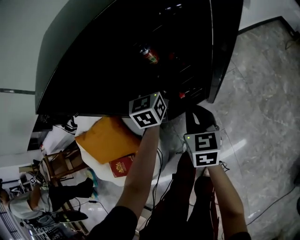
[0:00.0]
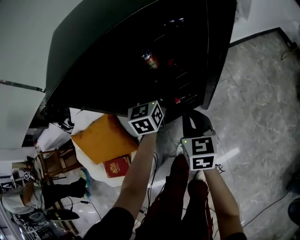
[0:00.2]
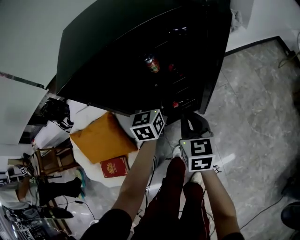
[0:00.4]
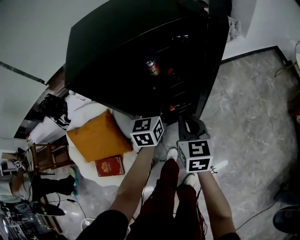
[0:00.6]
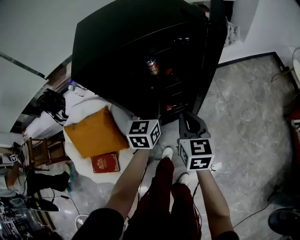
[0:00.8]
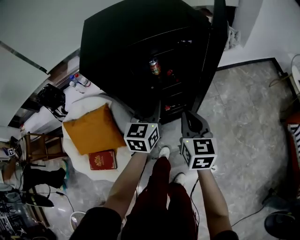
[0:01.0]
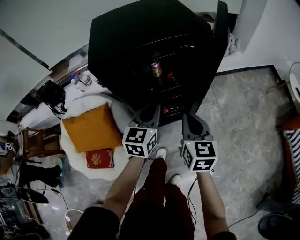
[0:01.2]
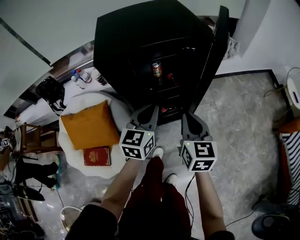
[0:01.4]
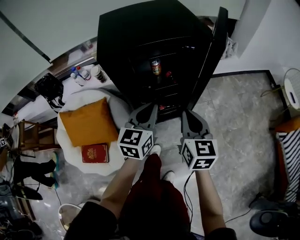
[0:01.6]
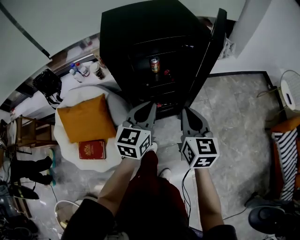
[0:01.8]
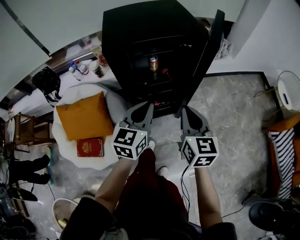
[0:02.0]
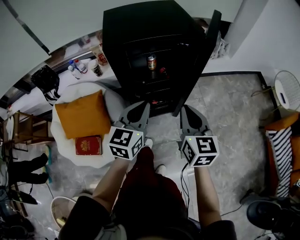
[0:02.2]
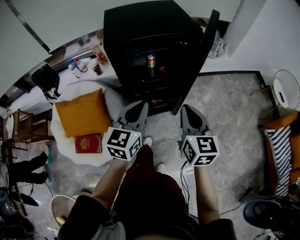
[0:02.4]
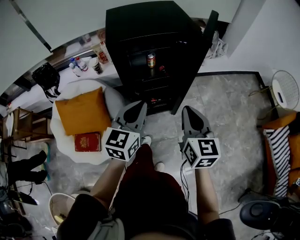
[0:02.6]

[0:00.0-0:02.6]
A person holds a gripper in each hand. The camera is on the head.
0.0 to 1.2 s: The right gripper is displaced upward and backward by roughly 15 cm, while the left gripper is displaced backward and upward by about 20 cm, and closes.
1.2 to 2.6 s: Both grippers travel together backward and upward, about 15 cm.

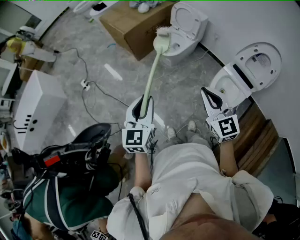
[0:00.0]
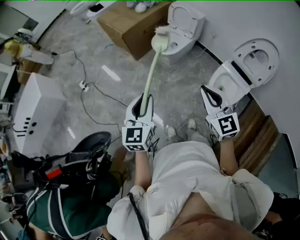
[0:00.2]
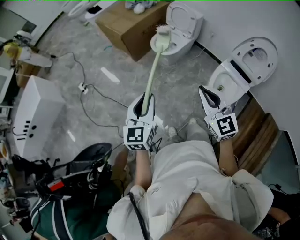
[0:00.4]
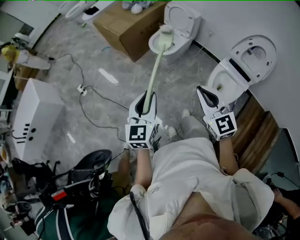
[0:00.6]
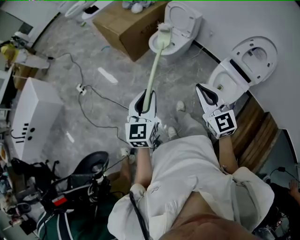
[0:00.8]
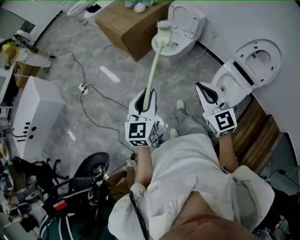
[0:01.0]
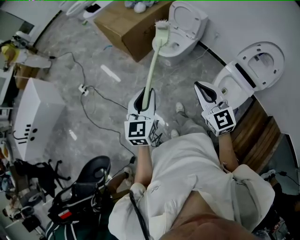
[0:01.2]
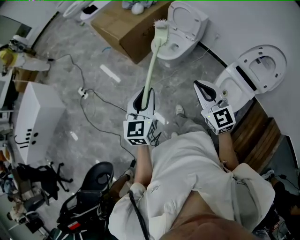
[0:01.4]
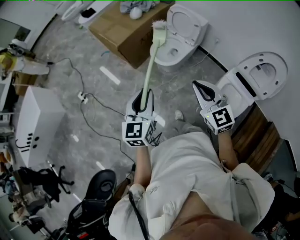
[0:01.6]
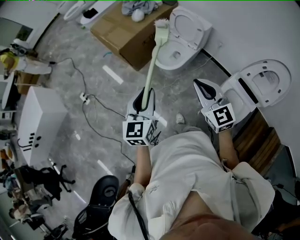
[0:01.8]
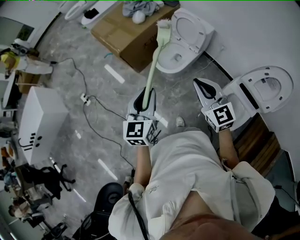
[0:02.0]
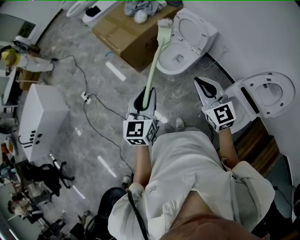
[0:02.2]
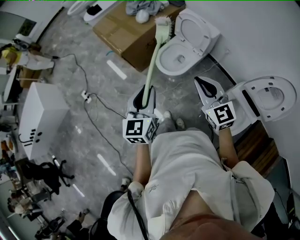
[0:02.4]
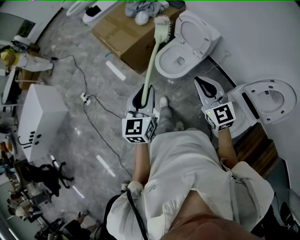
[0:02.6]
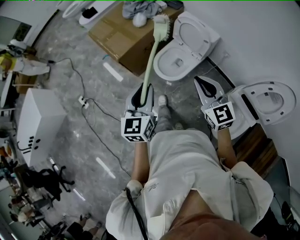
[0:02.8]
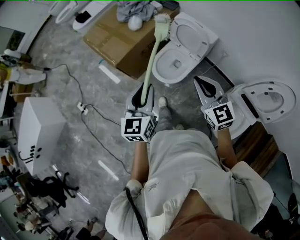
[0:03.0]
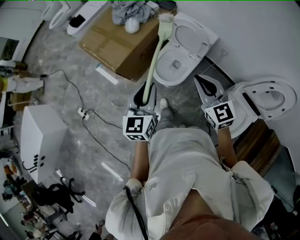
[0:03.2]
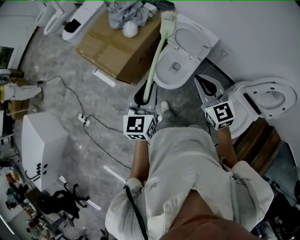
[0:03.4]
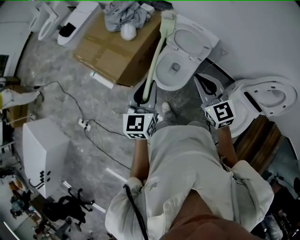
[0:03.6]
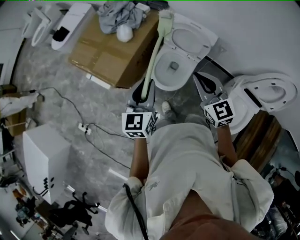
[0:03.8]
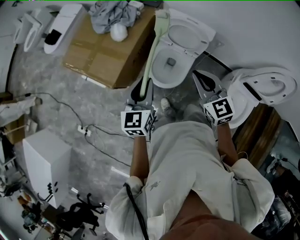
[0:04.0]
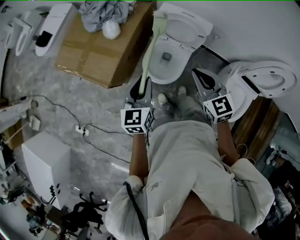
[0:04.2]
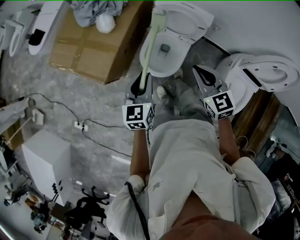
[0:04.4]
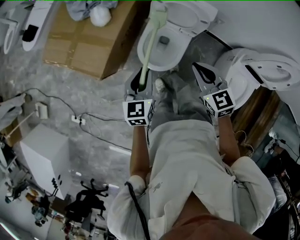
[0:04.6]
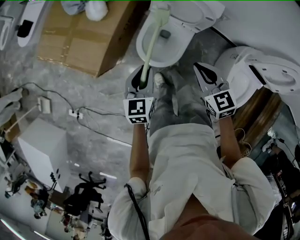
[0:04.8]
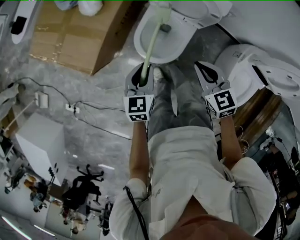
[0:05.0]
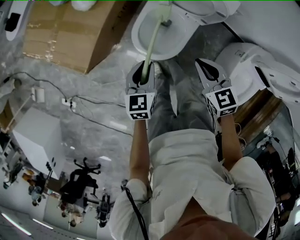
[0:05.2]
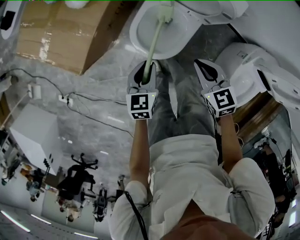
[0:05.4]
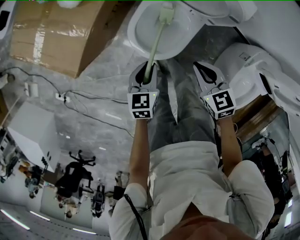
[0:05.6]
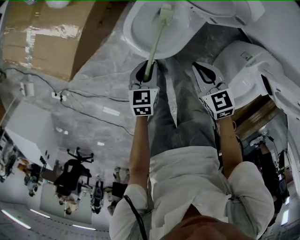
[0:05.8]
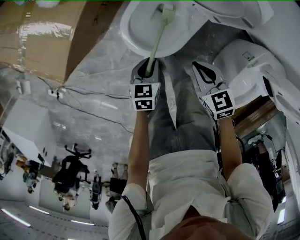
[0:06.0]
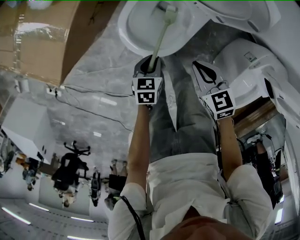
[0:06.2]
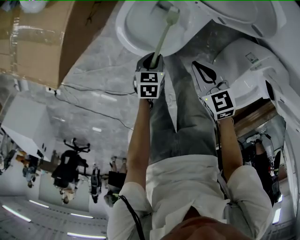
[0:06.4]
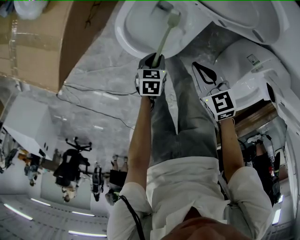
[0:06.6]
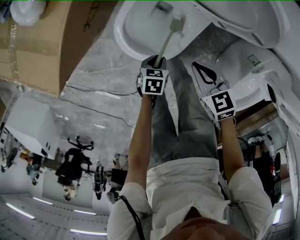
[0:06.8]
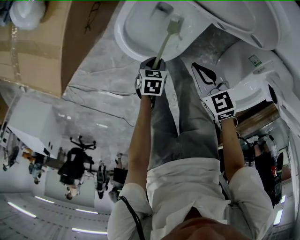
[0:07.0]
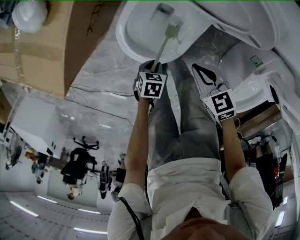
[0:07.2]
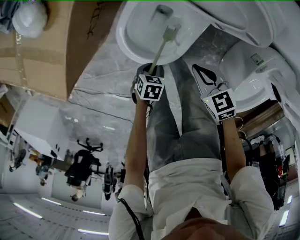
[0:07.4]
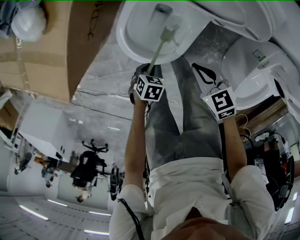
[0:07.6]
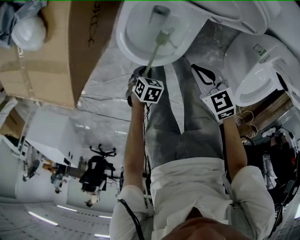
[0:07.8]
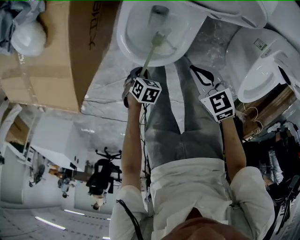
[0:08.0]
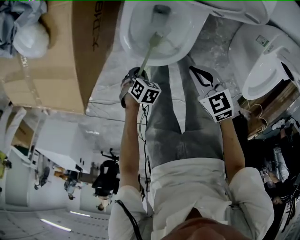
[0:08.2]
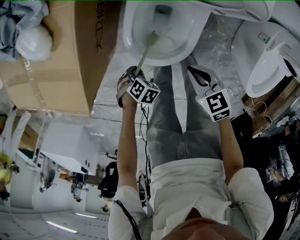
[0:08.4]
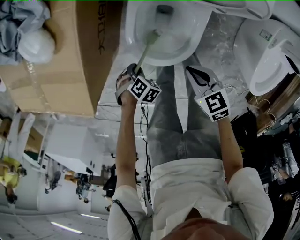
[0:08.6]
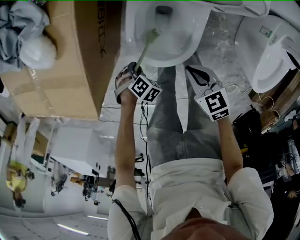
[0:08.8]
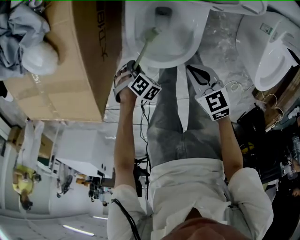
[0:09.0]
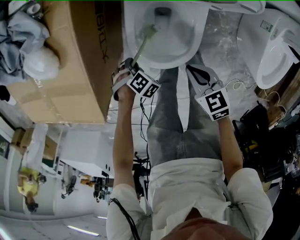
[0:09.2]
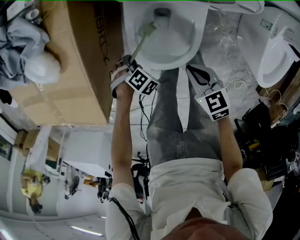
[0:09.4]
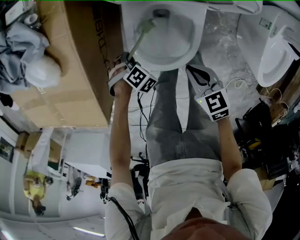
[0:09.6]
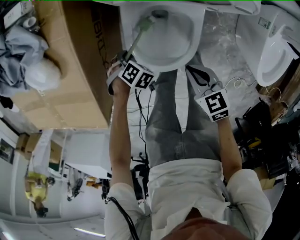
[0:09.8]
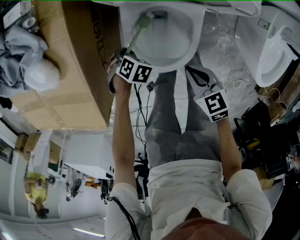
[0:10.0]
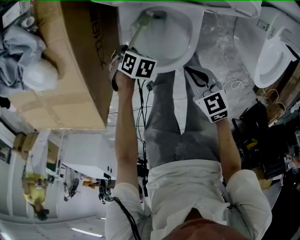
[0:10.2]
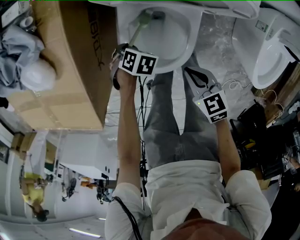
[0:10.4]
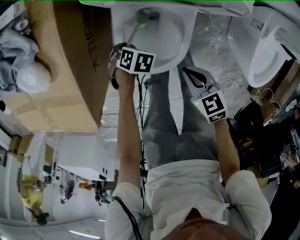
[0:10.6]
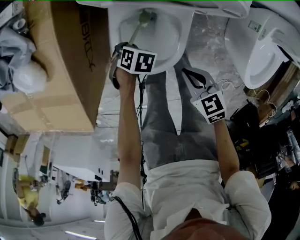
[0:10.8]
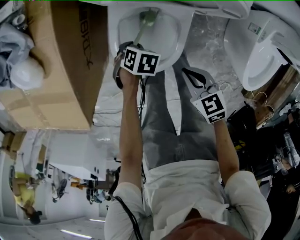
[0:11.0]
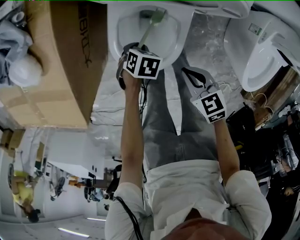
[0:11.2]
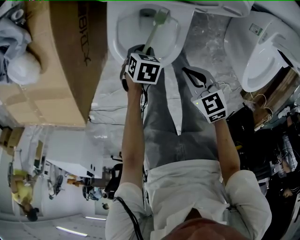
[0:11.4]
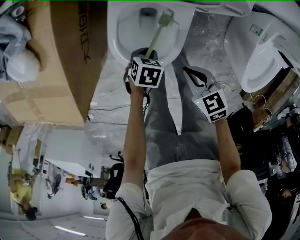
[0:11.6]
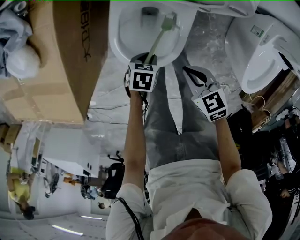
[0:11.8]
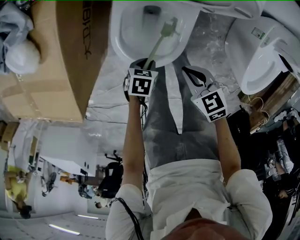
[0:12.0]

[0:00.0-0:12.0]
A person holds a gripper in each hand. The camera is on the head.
0.0 to 1.6 s: Both grippers move forward, roughly 20 cm.
1.6 to 3.0 s: Both grippers travel together forward, about 25 cm.
3.0 to 4.4 s: Both grippers travel together forward and downward, approximately 20 cm. The right gripper swivels approximately 20 degrees; the left gripper rotates about 20 degrees.
4.4 to 6.0 s: Both grippers move downward, some 35 cm. The right gripper swivels about 30 degrees, while the left gripper tilts its fingers some 30 degrees downward.
6.0 to 7.6 s: The right gripper travels downward by approximately 5 cm. The left gripper heads downward, covering some 10 cm, and swivels some 40 degrees.
7.6 to 9.0 s: The right gripper shifts by roughly 10 cm, and turns by roughly 20 degrees, while the left gripper changes place by about 15 cm, and rolls clockwise, seen from behind, by roughly 50 degrees.
9.0 to 10.4 s: The left gripper changes place by approximately 15 cm, and changes its angle by roughly 20 degrees.
10.4 to 12.0 s: The left gripper ends up roughly 15 cm from where it was, and changes its angle by approximately 40 degrees.

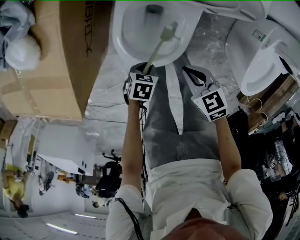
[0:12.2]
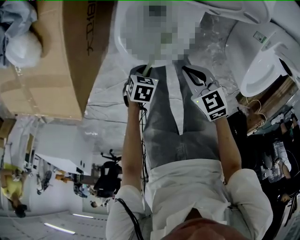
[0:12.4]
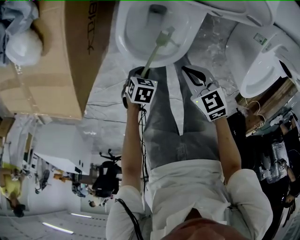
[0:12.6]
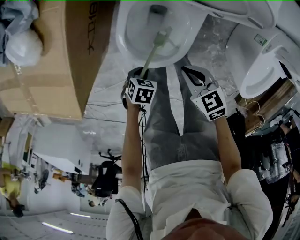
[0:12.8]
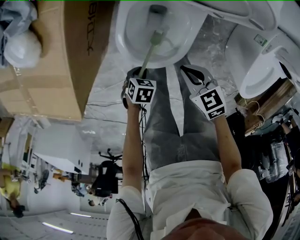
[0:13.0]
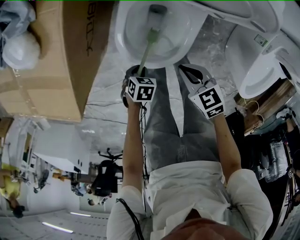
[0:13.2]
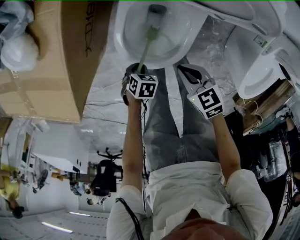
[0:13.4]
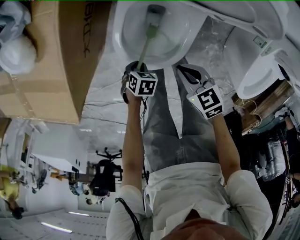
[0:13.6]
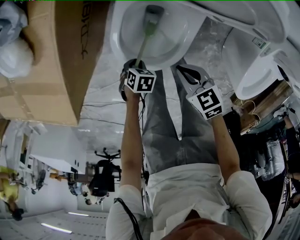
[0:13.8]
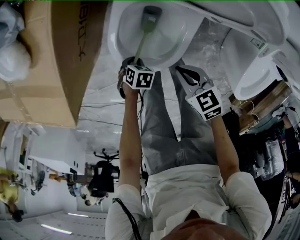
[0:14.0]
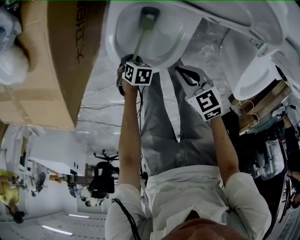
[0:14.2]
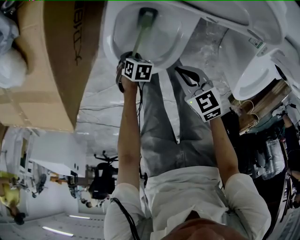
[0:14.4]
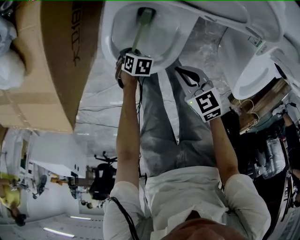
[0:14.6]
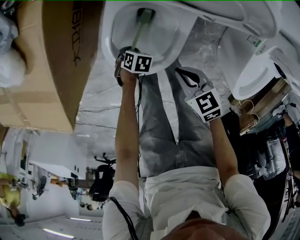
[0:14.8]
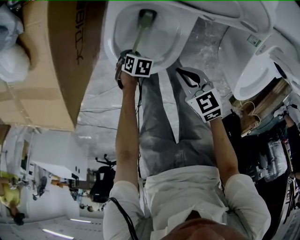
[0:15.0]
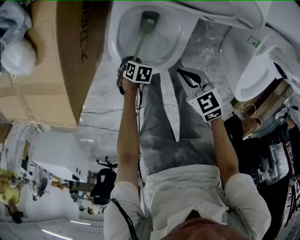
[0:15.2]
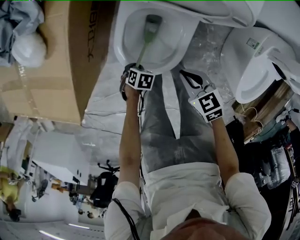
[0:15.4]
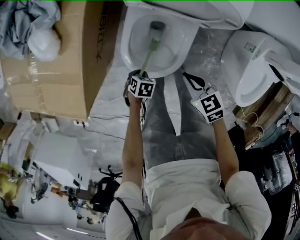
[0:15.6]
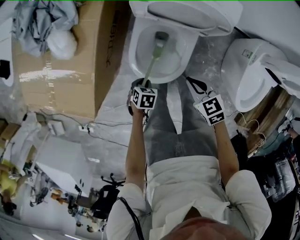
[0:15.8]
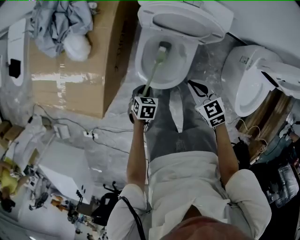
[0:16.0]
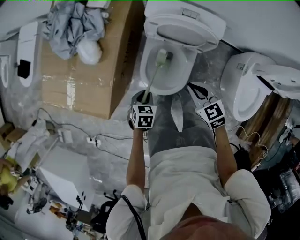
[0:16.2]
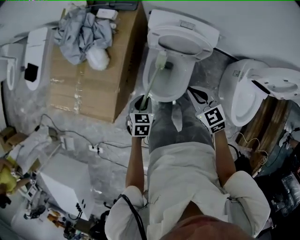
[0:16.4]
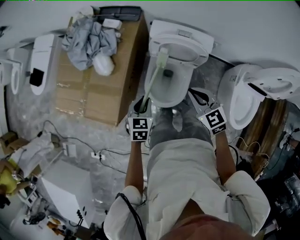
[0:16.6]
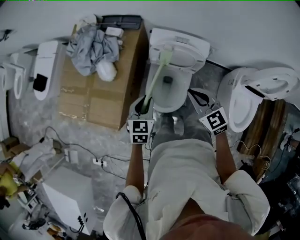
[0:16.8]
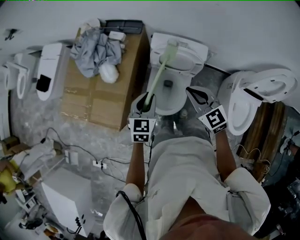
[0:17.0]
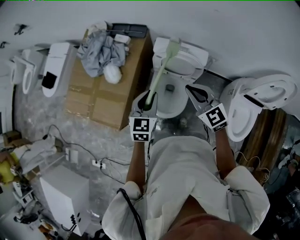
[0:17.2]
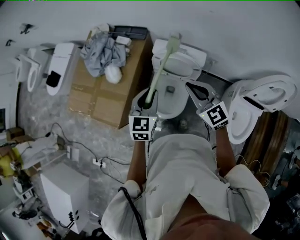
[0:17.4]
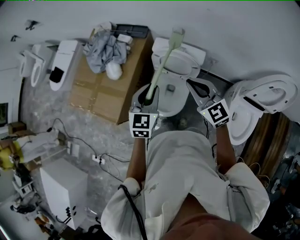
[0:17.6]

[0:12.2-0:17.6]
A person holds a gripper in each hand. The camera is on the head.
12.2 to 13.6 s: The left gripper moves downward, roughly 5 cm.
13.6 to 15.0 s: The left gripper ends up about 10 cm from where it was.
15.0 to 16.2 s: Both grippers travel together upward, approximately 25 cm. The left gripper rotates roughly 30 degrees.
16.2 to 17.6 s: Both grippers move upward, roughly 30 cm. The left gripper angles its fingers upward, by approximately 40 degrees; the right gripper changes its angle by some 40 degrees.

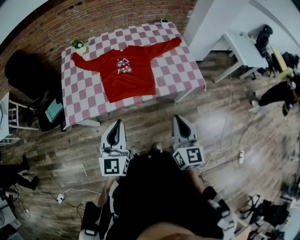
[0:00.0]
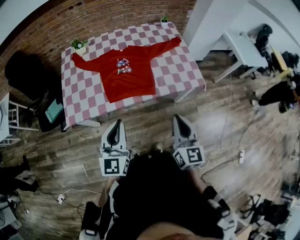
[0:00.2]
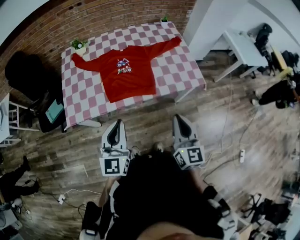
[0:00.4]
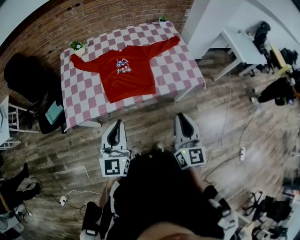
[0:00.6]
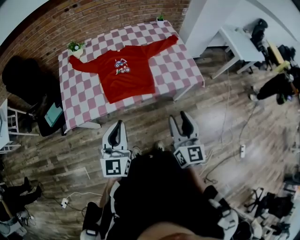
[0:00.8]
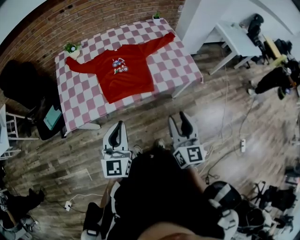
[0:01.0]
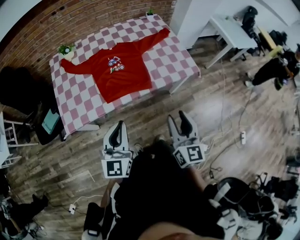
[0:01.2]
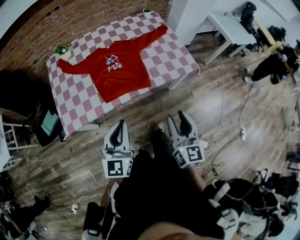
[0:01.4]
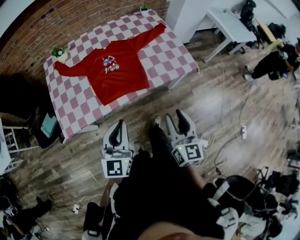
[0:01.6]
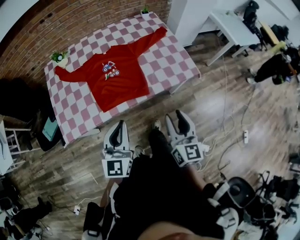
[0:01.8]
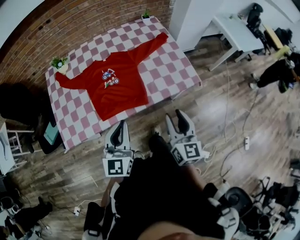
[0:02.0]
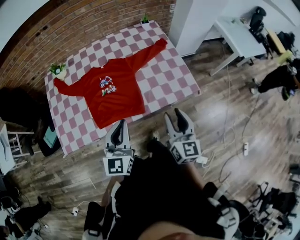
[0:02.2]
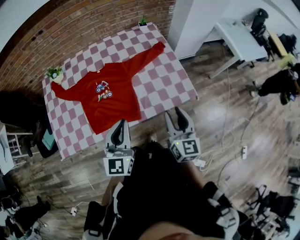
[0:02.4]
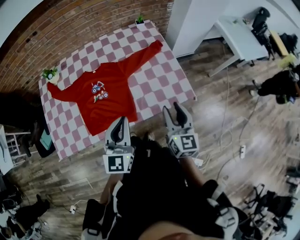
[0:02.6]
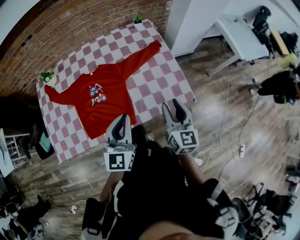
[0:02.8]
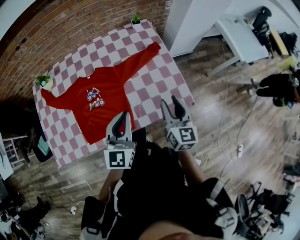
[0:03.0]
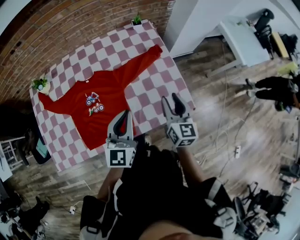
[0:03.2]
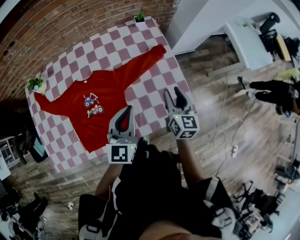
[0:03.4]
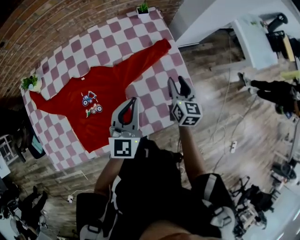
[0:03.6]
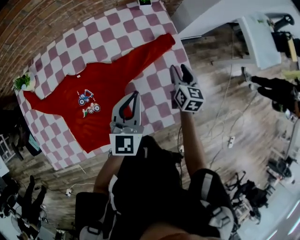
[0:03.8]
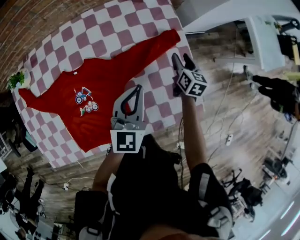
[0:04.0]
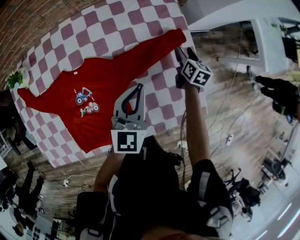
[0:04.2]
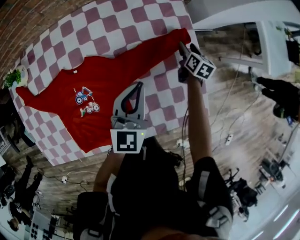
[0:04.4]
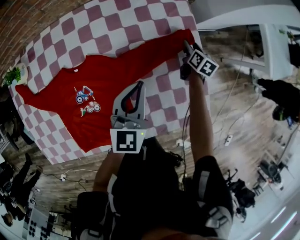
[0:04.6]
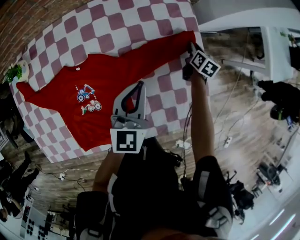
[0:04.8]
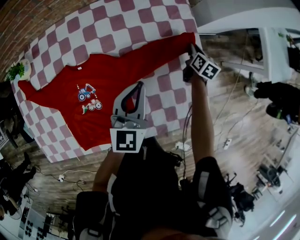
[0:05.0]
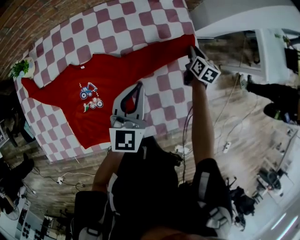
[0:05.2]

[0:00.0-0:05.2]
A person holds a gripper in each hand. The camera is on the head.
0.0 to 1.8 s: The right gripper moves roughly 5 cm, and opens up; the left gripper is displaced forward by approximately 5 cm.
1.8 to 3.4 s: Both grippers are carried forward, about 40 cm.
3.4 to 5.2 s: The right gripper is displaced forward and downward by some 35 cm, and closes its fingers. The left gripper travels forward and downward by about 15 cm.
